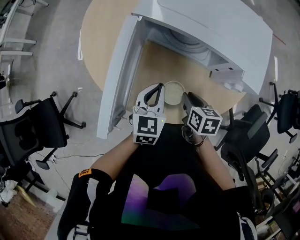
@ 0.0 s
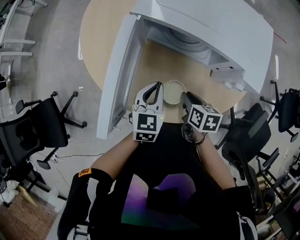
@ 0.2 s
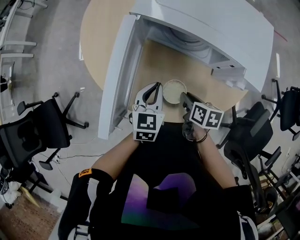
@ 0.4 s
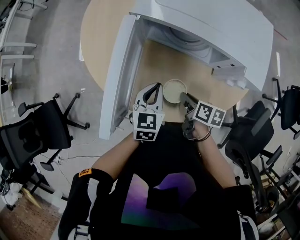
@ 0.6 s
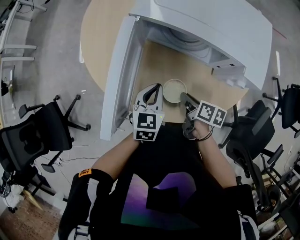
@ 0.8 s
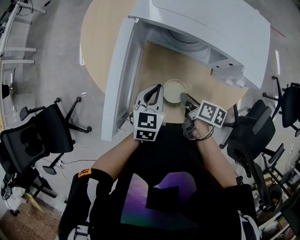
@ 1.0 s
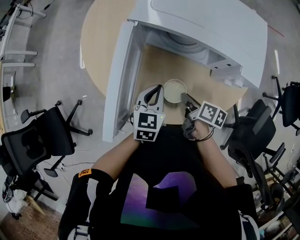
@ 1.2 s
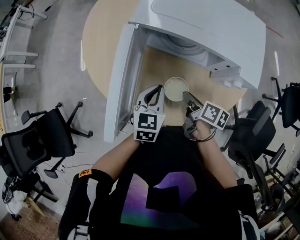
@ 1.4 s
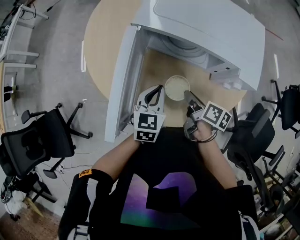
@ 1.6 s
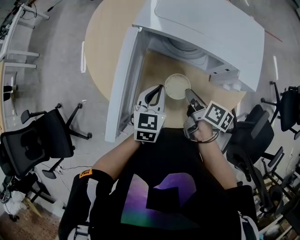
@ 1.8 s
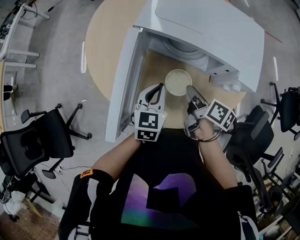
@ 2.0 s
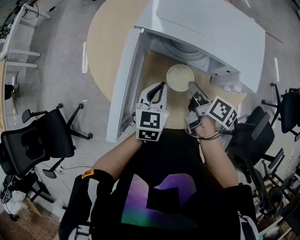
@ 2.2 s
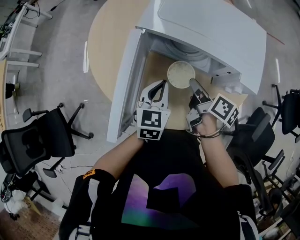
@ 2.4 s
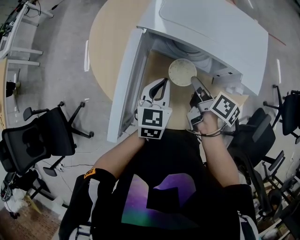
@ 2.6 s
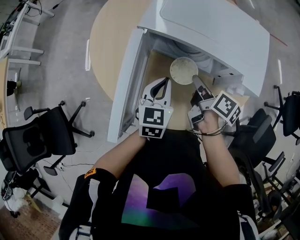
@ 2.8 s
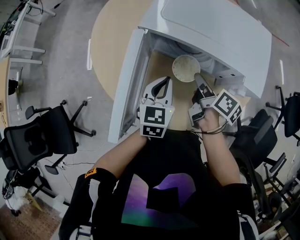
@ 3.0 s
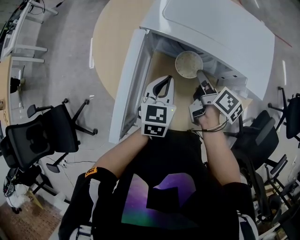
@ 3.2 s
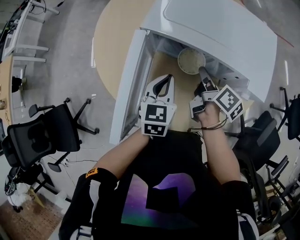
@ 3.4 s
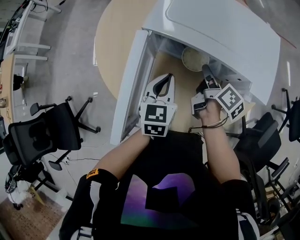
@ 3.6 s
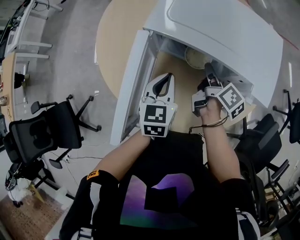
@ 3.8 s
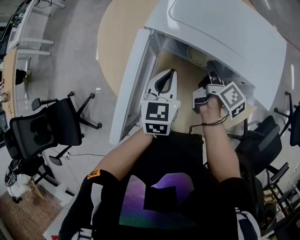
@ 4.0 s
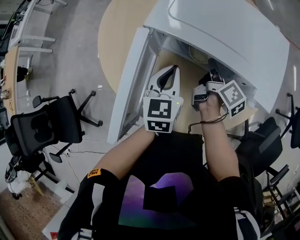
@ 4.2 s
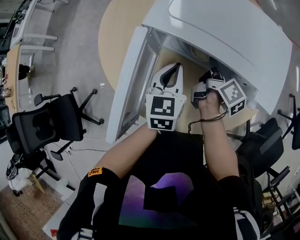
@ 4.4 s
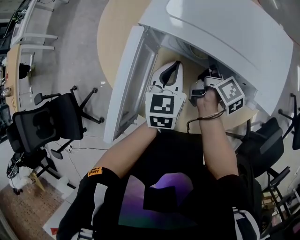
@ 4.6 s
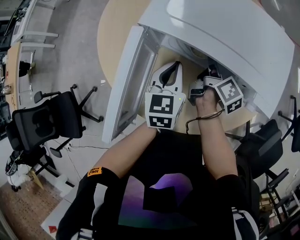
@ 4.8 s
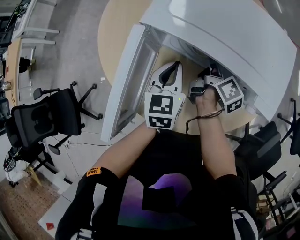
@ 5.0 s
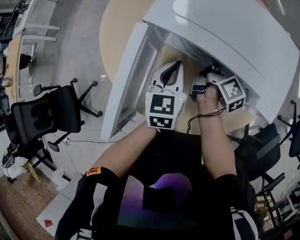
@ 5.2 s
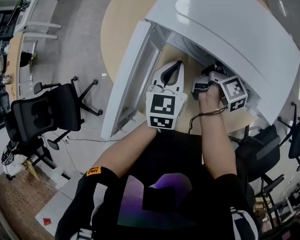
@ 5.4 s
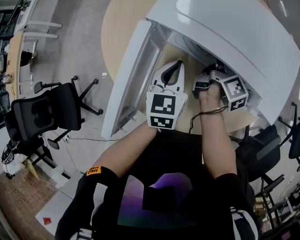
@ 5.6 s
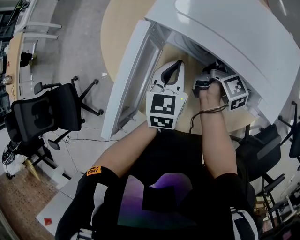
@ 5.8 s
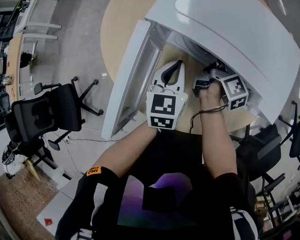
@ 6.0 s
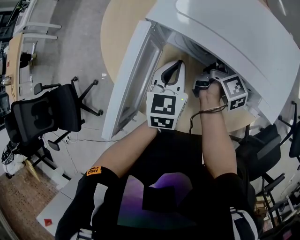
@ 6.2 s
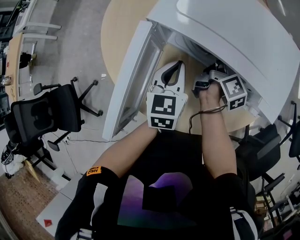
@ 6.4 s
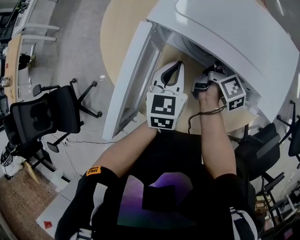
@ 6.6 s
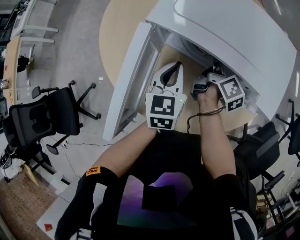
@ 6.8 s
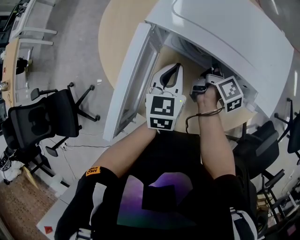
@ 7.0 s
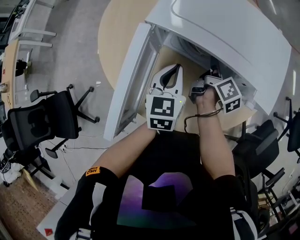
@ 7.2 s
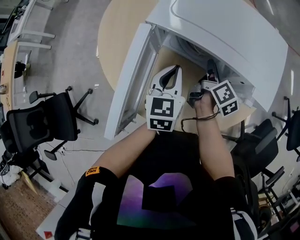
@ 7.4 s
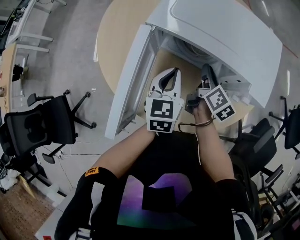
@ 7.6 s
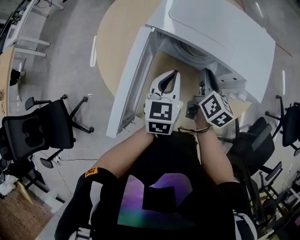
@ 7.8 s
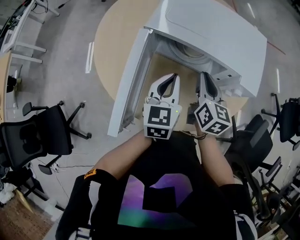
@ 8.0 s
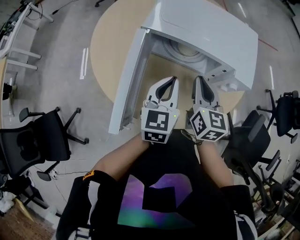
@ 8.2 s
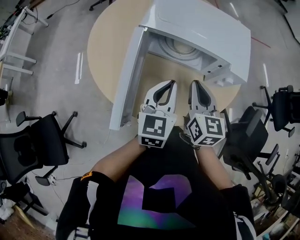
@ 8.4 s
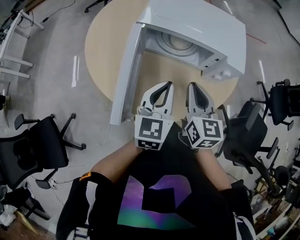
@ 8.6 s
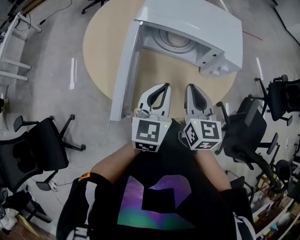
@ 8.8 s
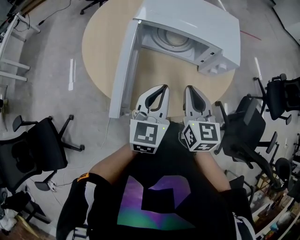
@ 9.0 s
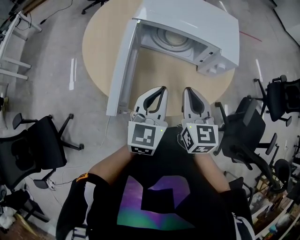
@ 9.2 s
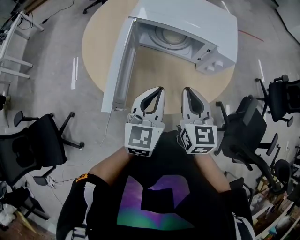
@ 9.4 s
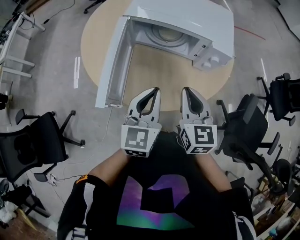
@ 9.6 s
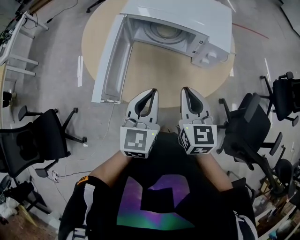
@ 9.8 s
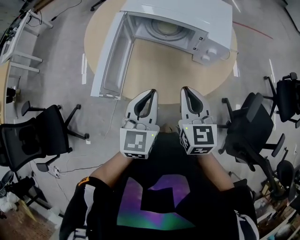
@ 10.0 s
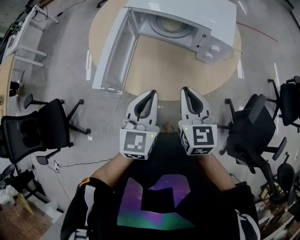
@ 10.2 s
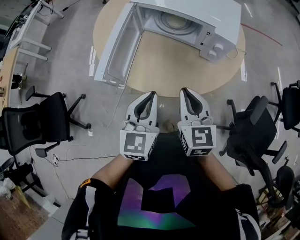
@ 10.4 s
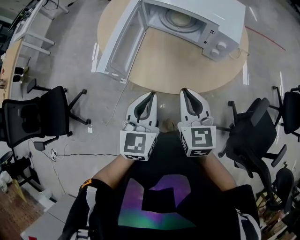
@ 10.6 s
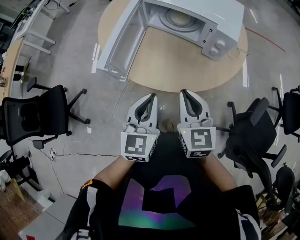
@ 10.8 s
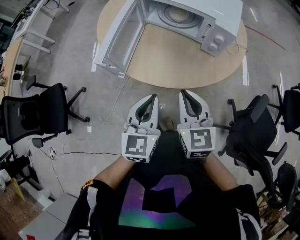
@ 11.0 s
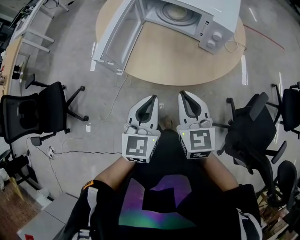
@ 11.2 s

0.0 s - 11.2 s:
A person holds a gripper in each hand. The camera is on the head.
0.0 s - 1.6 s: The right gripper turns by about 40 degrees.
1.6 s - 3.2 s: The left gripper heads forward, covering about 5 cm. Meanwhile the right gripper is displaced forward and upward by approximately 10 cm.
3.2 s - 4.8 s: Both grippers move forward, approximately 5 cm.
4.8 s - 6.4 s: There are only small adjustments of the grippers.
6.4 s - 8.0 s: The right gripper shifts about 15 cm backward and upward, and rotates around the line of its fingers by approximately 50 degrees, counterclockwise from behind. The left gripper goes approximately 10 cm backward and upward.
8.0 s - 9.6 s: Both grippers travel together backward, approximately 20 cm.
9.6 s - 11.2 s: The two grippers go approximately 15 cm backward.

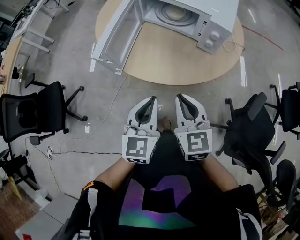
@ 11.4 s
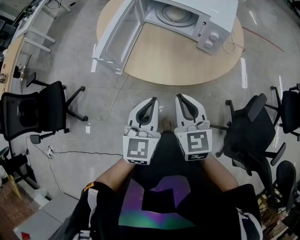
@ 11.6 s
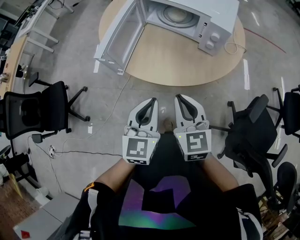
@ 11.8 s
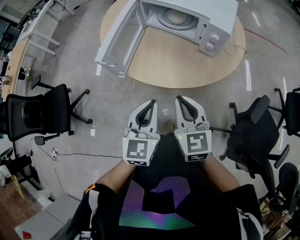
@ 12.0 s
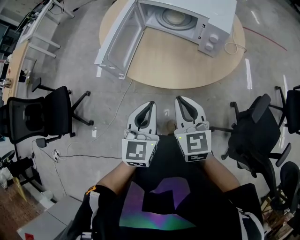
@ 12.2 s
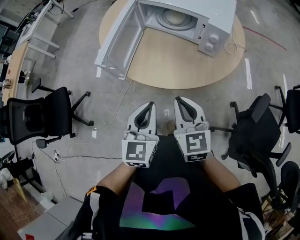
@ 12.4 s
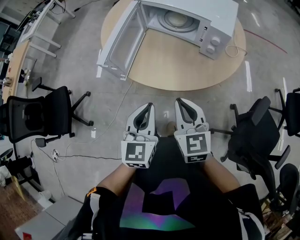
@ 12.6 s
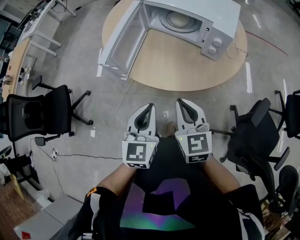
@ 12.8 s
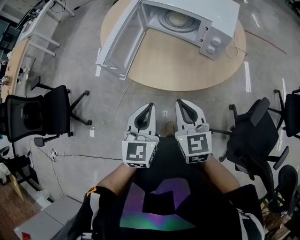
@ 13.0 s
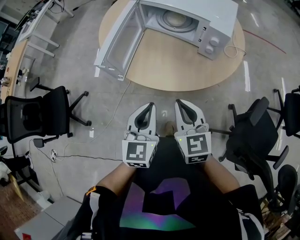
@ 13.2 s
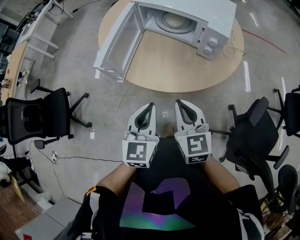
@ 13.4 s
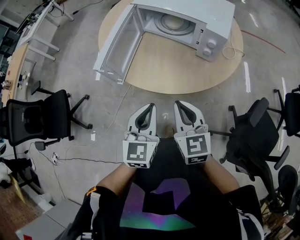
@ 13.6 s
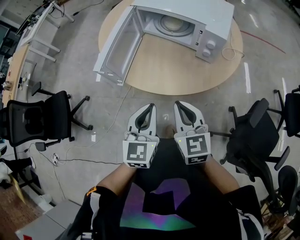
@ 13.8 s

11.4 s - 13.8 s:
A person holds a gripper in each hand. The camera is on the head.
11.4 s - 13.8 s: The grippers make only small movements.

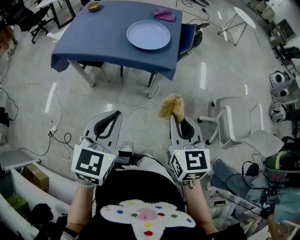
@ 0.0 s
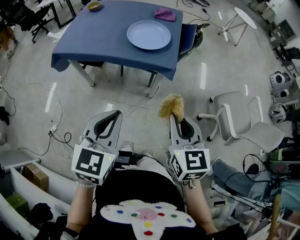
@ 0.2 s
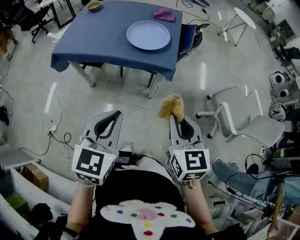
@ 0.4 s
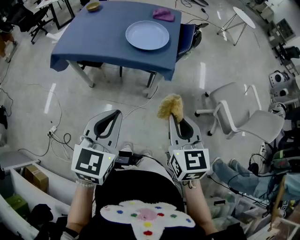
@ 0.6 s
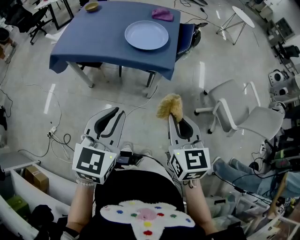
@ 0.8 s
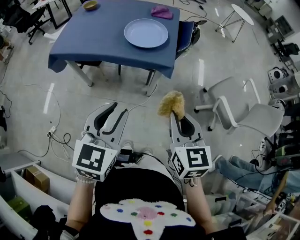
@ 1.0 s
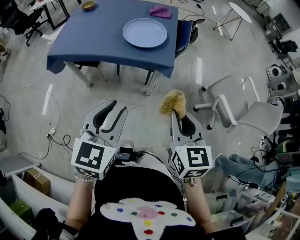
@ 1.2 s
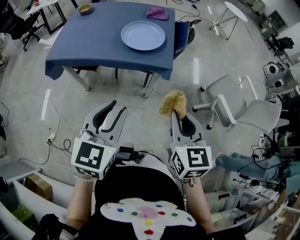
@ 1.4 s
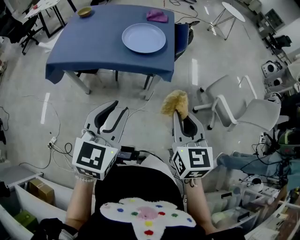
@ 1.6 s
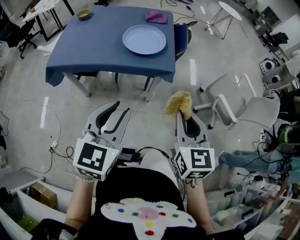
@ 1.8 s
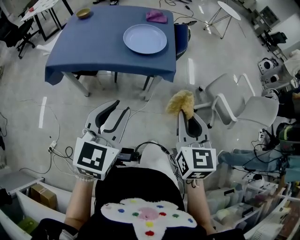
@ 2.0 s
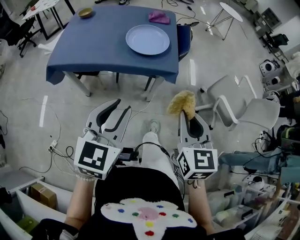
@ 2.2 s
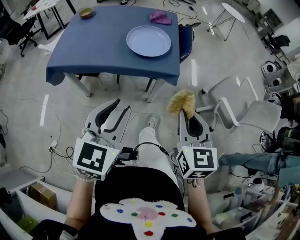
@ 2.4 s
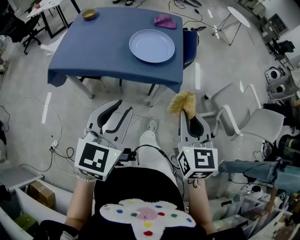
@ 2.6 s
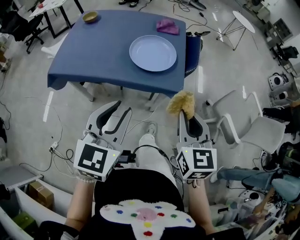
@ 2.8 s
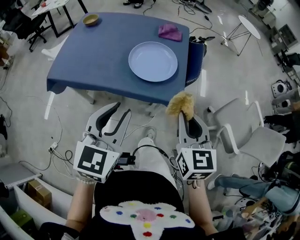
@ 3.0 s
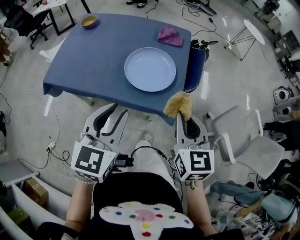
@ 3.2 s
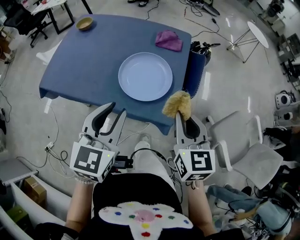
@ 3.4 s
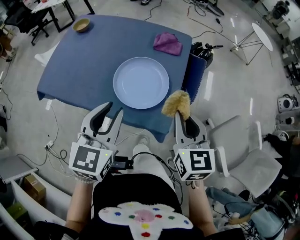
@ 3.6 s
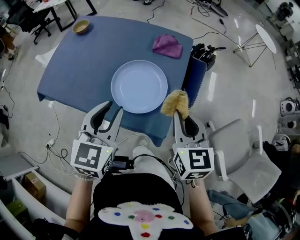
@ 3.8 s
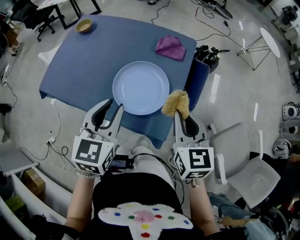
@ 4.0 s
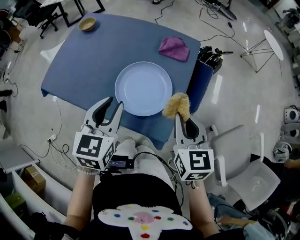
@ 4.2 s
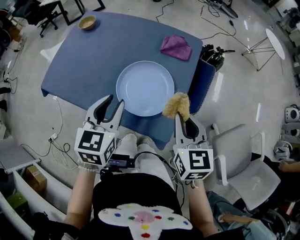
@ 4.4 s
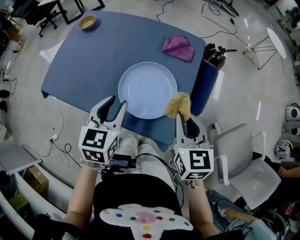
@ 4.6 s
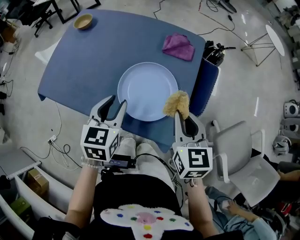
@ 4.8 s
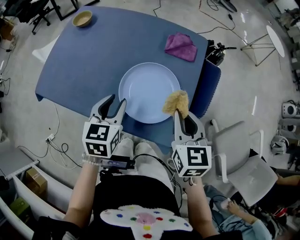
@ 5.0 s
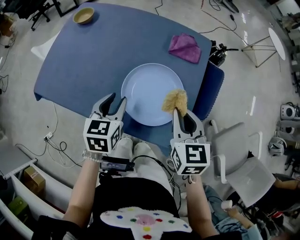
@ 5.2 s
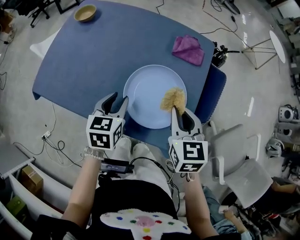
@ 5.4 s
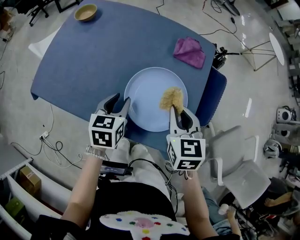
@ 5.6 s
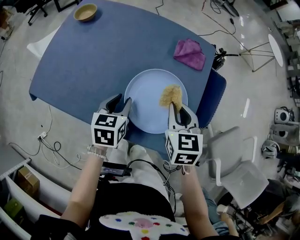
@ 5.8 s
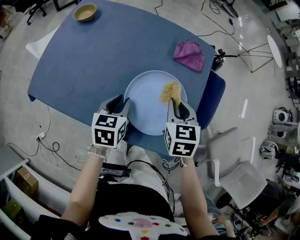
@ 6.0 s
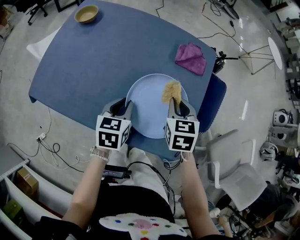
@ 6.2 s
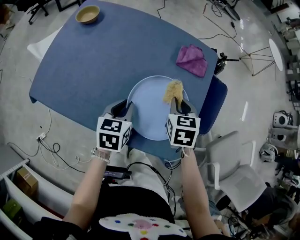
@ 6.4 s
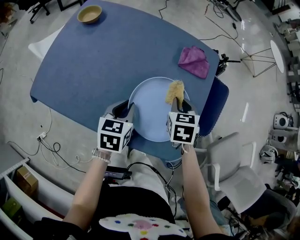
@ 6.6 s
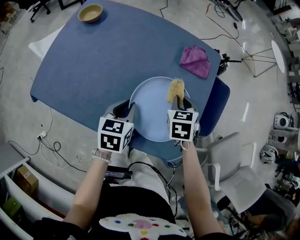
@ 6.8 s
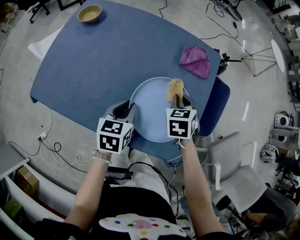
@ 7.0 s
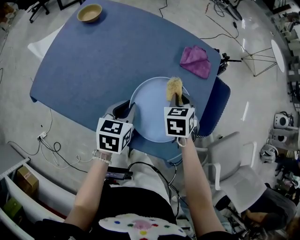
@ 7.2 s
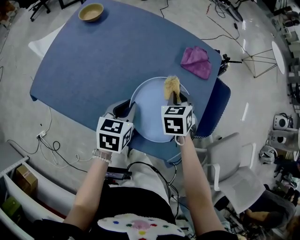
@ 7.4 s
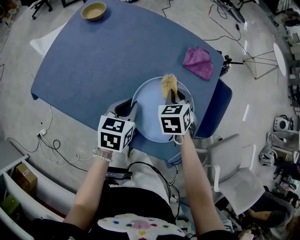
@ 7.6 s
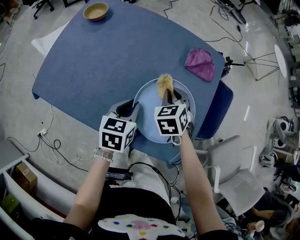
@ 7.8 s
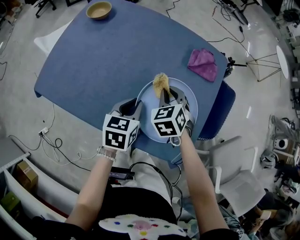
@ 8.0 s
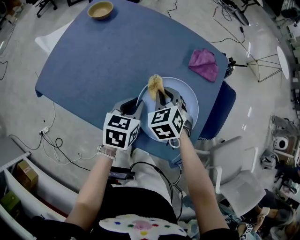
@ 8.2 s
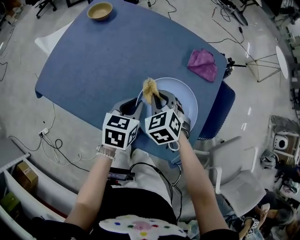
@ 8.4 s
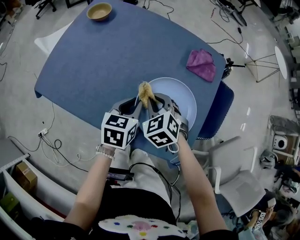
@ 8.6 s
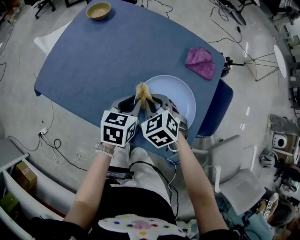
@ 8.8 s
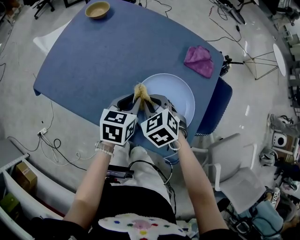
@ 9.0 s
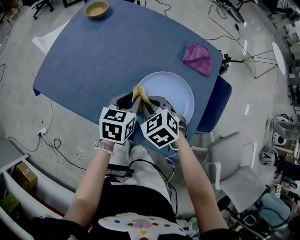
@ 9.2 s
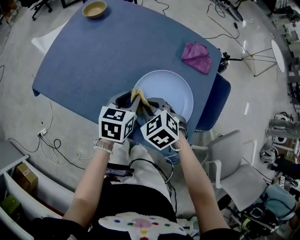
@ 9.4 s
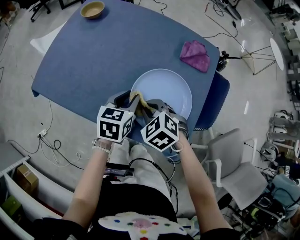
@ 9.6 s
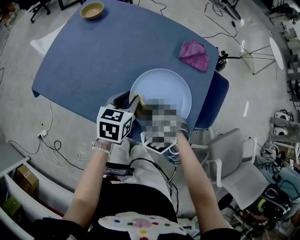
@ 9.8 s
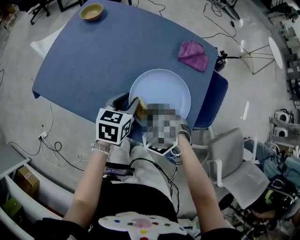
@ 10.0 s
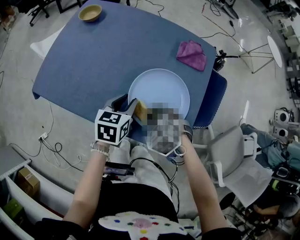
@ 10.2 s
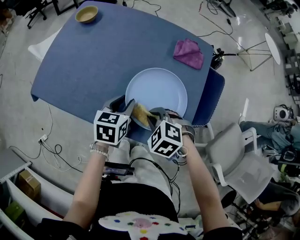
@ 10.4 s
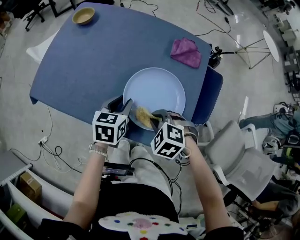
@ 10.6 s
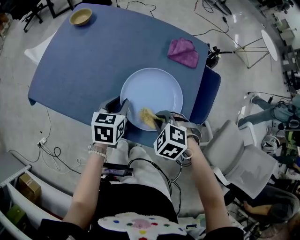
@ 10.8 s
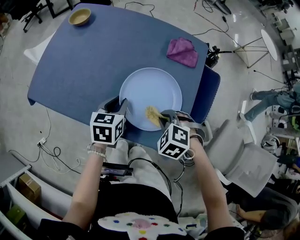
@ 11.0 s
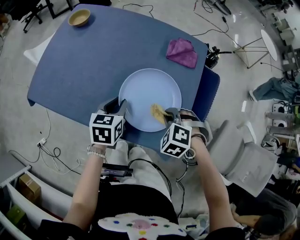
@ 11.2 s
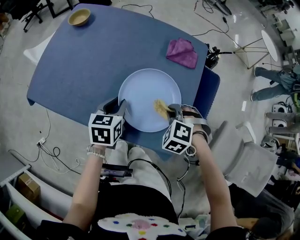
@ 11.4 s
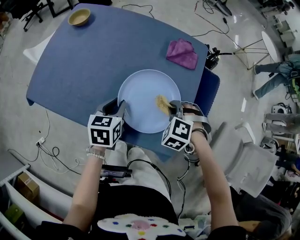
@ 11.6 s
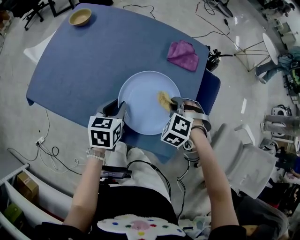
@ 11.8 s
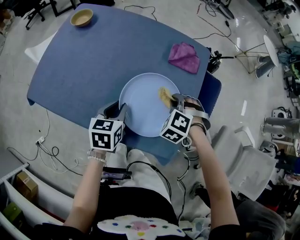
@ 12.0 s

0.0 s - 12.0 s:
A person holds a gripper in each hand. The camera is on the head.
0.0 s - 1.6 s: The left gripper opens up.
1.6 s - 3.0 s: Both grippers travel together forward, roughly 15 cm.
3.0 s - 4.4 s: The grippers both shift forward by some 20 cm. The left gripper swivels about 20 degrees.
4.4 s - 6.0 s: The left gripper heads downward and forward, covering about 15 cm. The right gripper travels forward, downward and to the left by about 15 cm.
6.0 s - 7.6 s: The right gripper moves downward and forward, about 10 cm, and rotates some 20 degrees.
7.6 s - 9.0 s: The right gripper travels to the left and backward by about 15 cm, and swivels approximately 30 degrees.
9.0 s - 10.4 s: The right gripper travels backward by approximately 10 cm.
10.4 s - 12.0 s: The right gripper shifts by roughly 15 cm, and swivels some 30 degrees.
